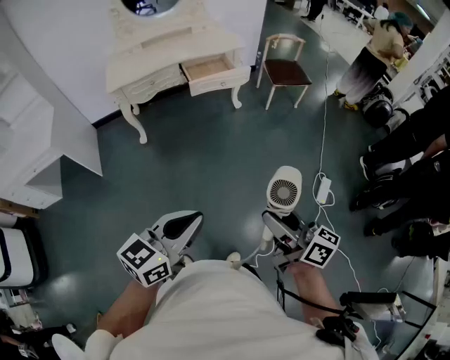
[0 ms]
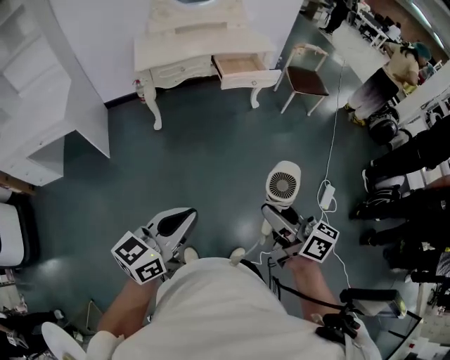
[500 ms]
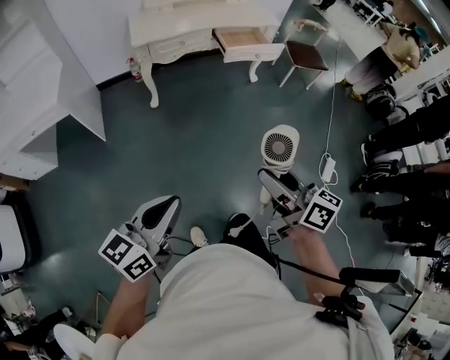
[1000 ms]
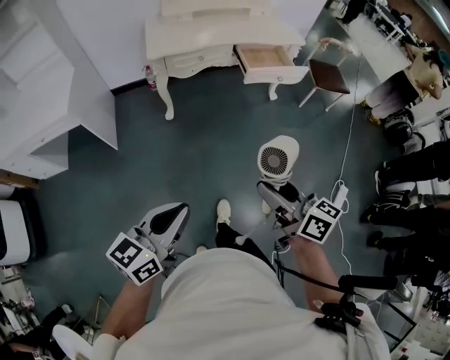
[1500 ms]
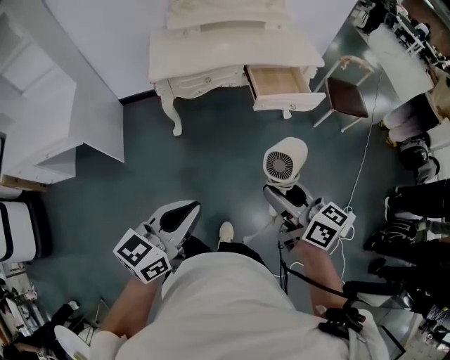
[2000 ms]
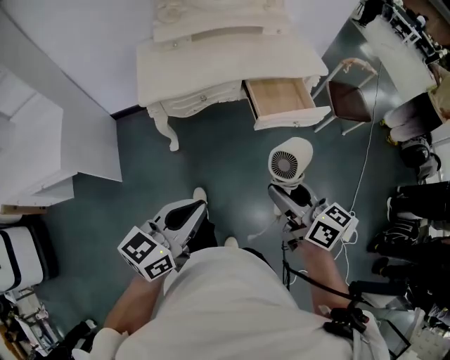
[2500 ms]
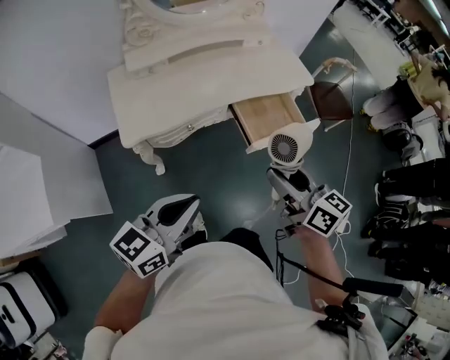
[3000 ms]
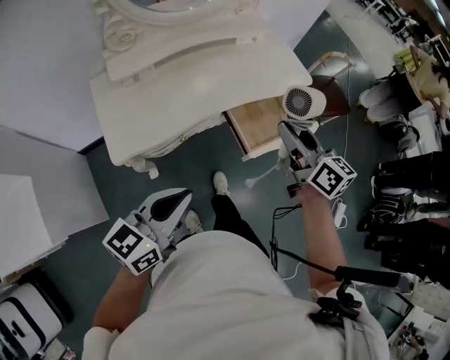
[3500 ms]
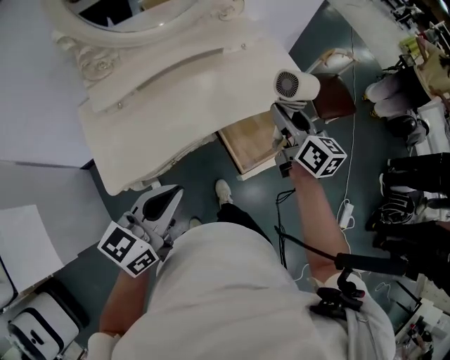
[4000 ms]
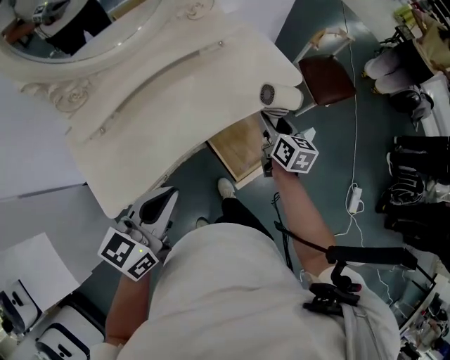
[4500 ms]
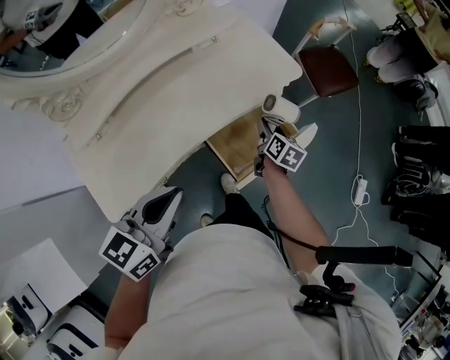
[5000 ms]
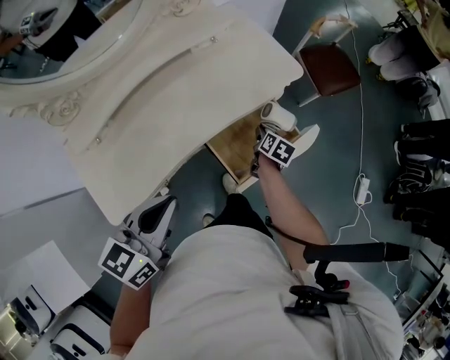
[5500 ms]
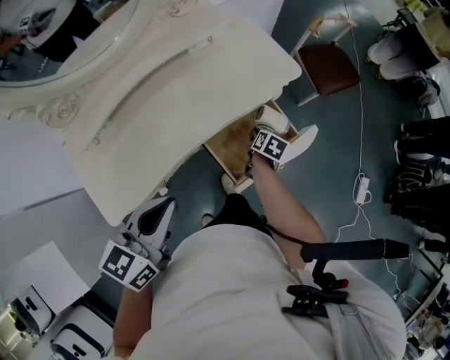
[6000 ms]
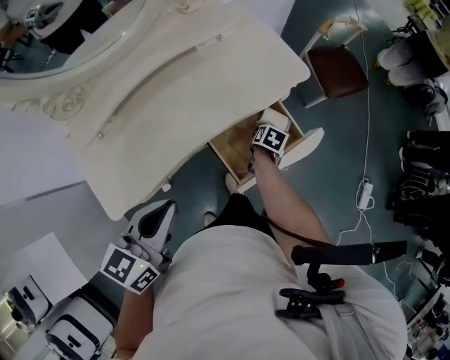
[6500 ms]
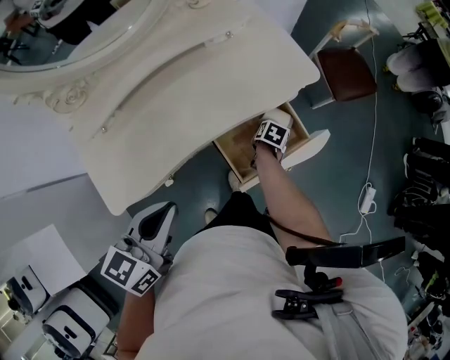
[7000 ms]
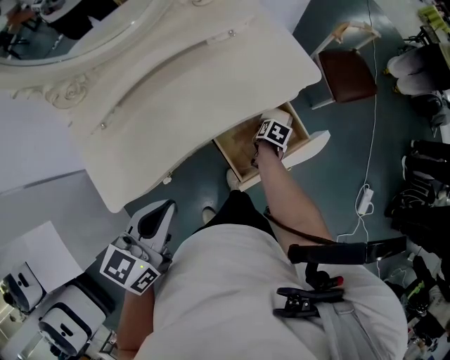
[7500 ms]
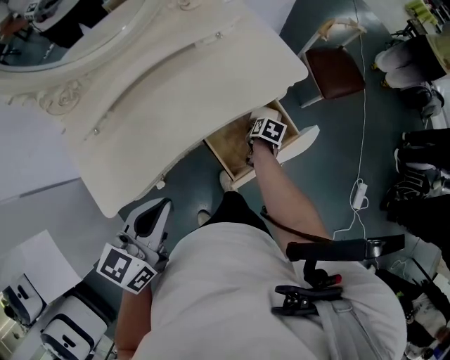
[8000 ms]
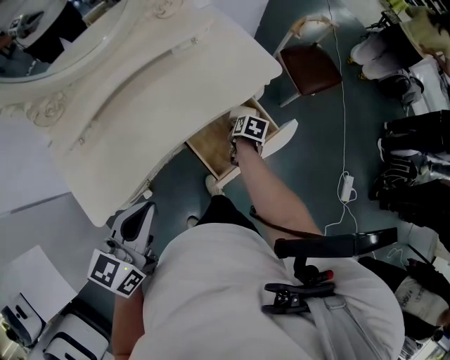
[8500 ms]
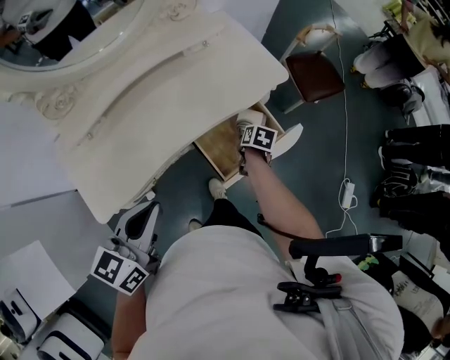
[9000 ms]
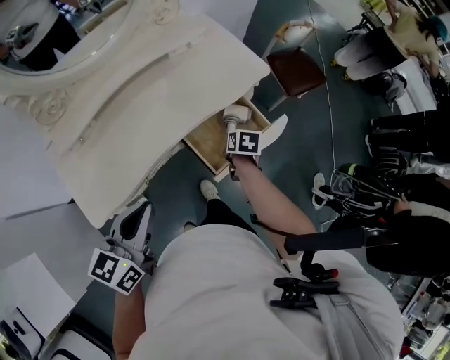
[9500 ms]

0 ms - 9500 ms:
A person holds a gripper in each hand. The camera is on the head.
0 ms - 2000 ms: The two grippers go approximately 40 cm forward and to the left.
2000 ms - 4000 ms: The two grippers travel together, forward, roughly 60 cm. The right gripper rotates some 30 degrees.
4000 ms - 5500 ms: The left gripper is displaced forward by about 10 cm; the right gripper is displaced downward by about 30 cm, and tilts its fingers approximately 40 degrees downward.
5500 ms - 7500 ms: The right gripper goes approximately 5 cm downward.
7500 ms - 9500 ms: The left gripper moves backward, some 5 cm, while the right gripper travels upward and backward by roughly 15 cm, and closes.

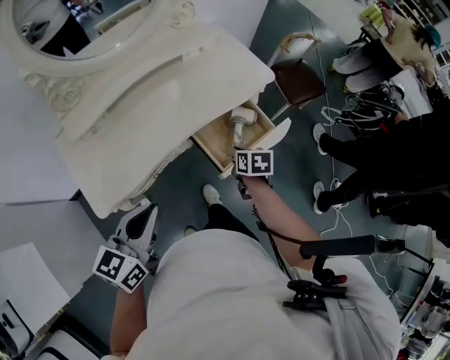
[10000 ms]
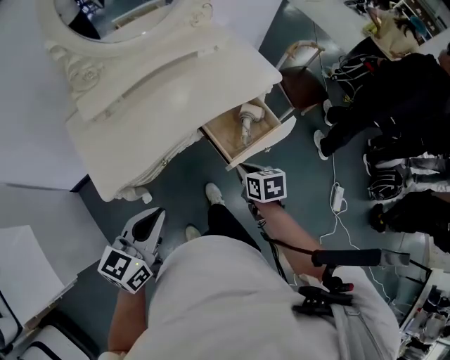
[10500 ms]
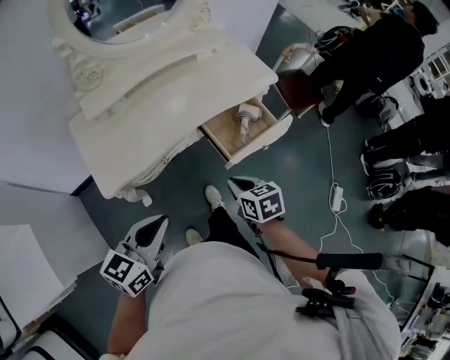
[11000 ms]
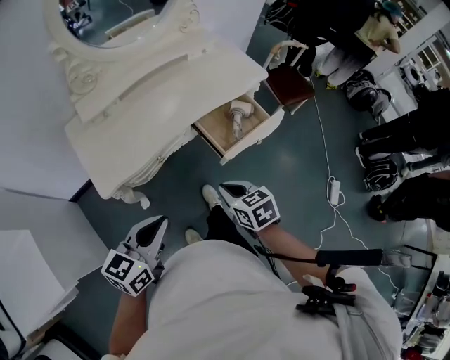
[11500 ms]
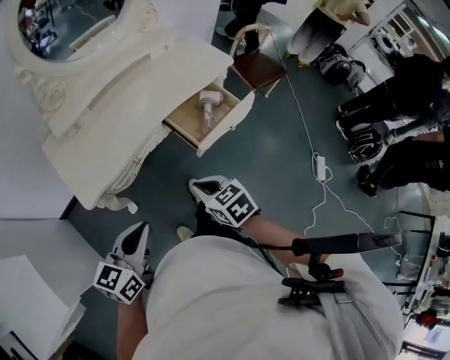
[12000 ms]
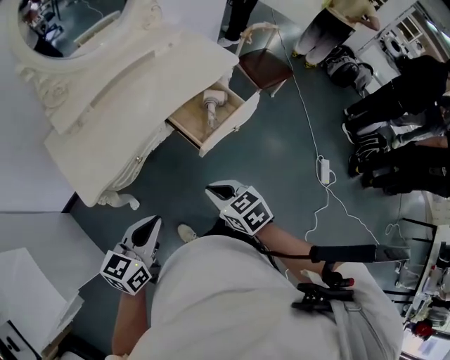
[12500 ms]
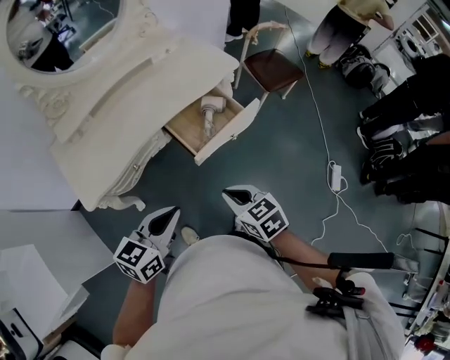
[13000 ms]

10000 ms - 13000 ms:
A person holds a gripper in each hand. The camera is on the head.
10000 ms - 11500 ms: The right gripper goes roughly 25 cm backward and to the left, and changes its angle by some 30 degrees; the left gripper shifts about 15 cm backward.
11500 ms - 13000 ms: Both grippers travel together to the right, some 15 cm.

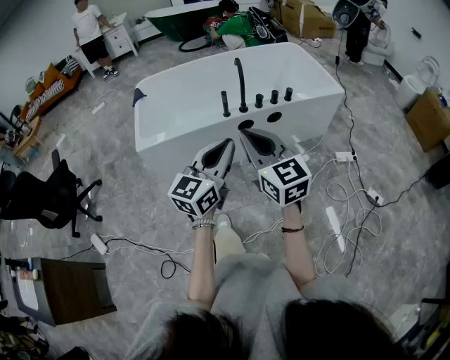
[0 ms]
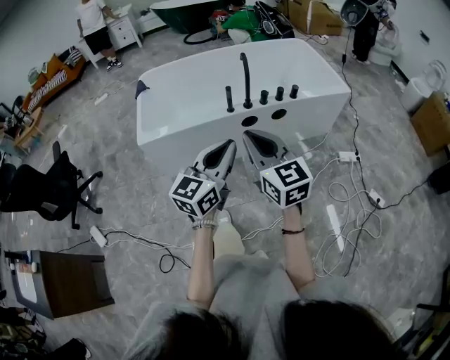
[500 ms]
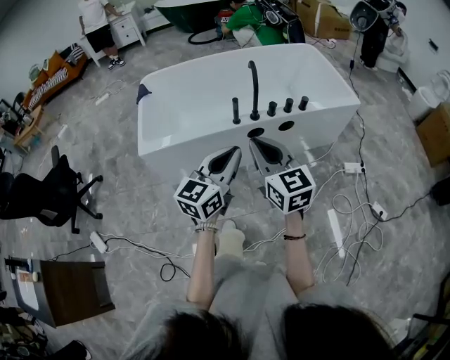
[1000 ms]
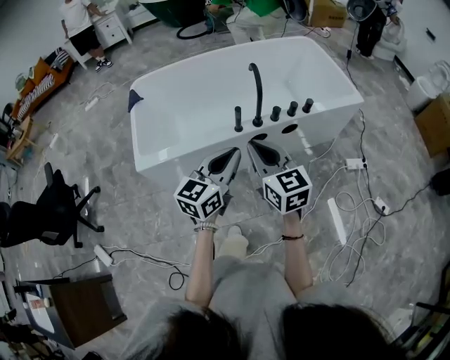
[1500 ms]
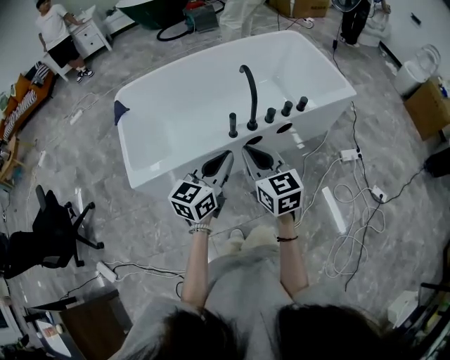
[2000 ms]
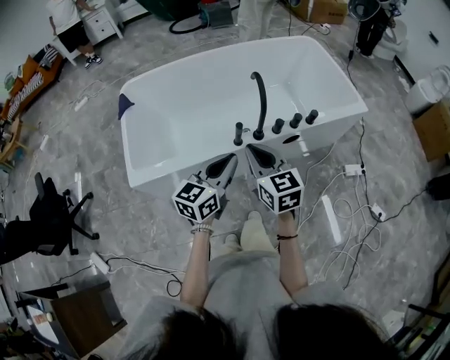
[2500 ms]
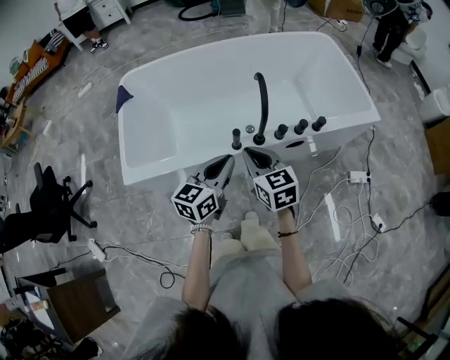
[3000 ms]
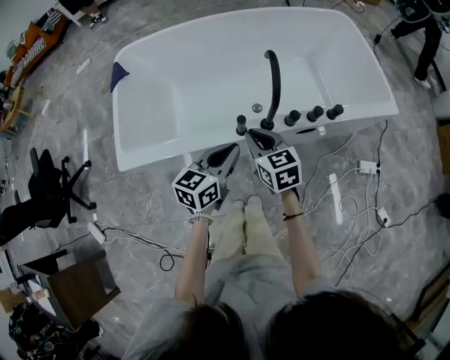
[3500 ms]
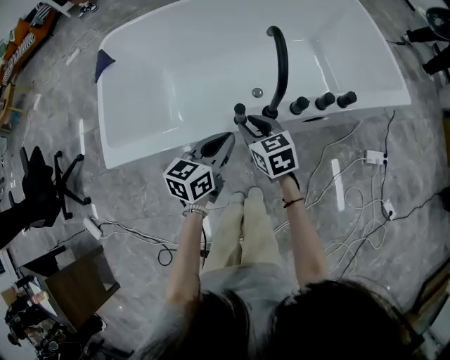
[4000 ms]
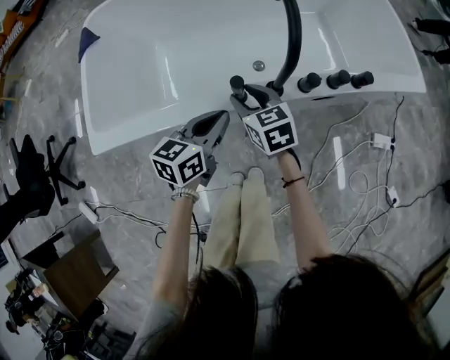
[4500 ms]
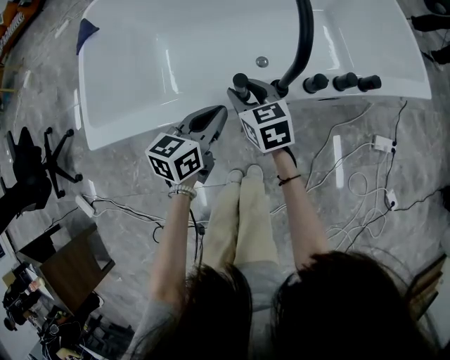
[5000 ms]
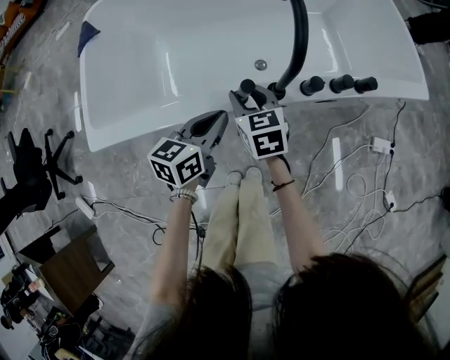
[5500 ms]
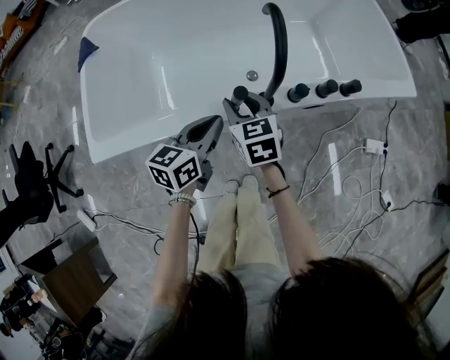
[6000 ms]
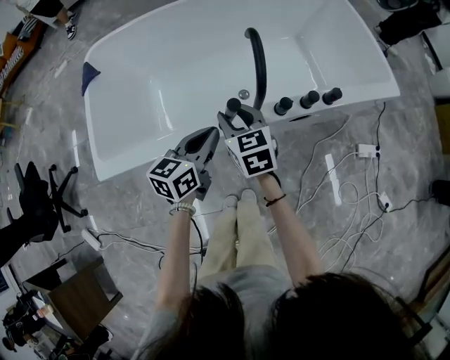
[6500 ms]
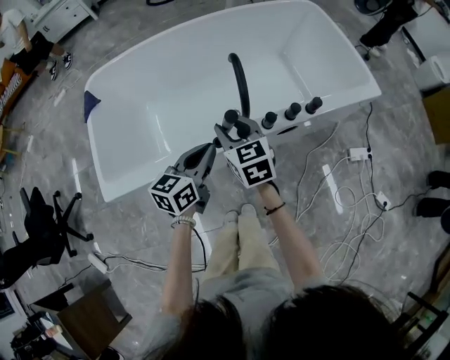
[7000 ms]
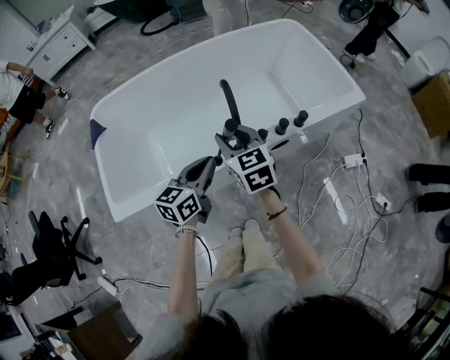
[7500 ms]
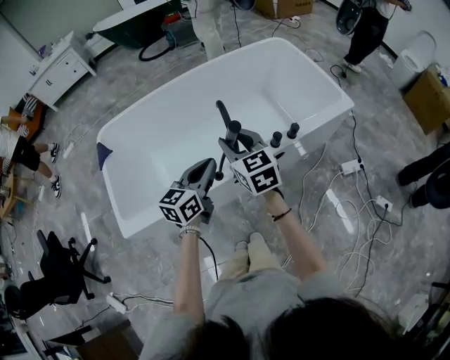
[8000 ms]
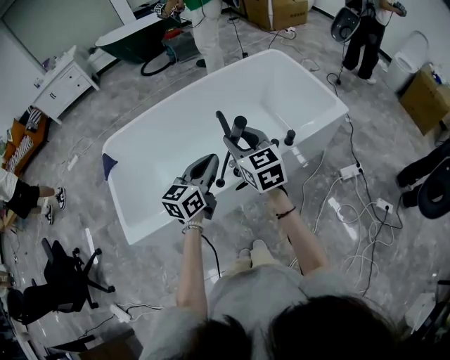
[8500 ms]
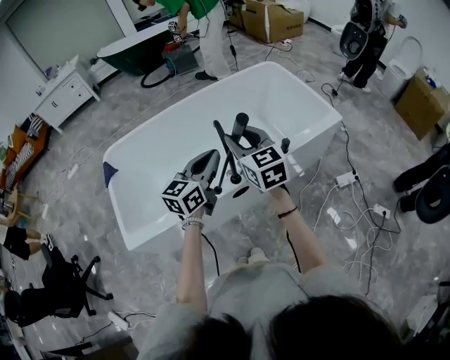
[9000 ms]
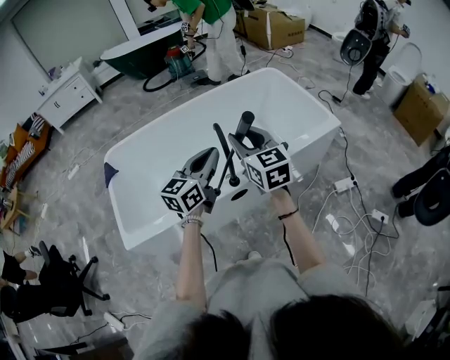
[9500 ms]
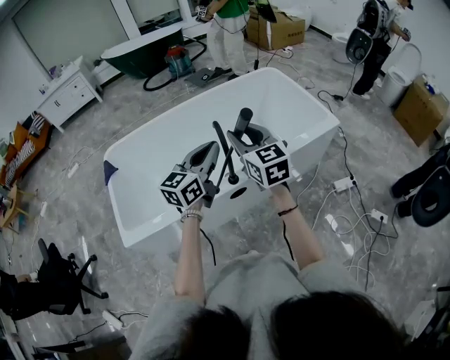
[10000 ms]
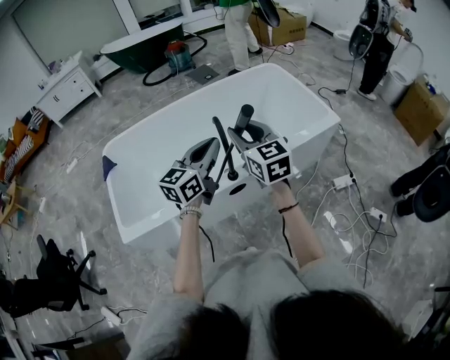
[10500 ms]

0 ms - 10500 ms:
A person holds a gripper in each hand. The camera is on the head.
0 ms - 2000 ms: The right gripper is displaced forward and downward by approximately 25 cm. The left gripper shifts about 25 cm forward.
2000 ms - 4000 ms: Both grippers move downward and forward, approximately 30 cm. The left gripper rotates approximately 20 degrees, while the right gripper rotates some 30 degrees.
4000 ms - 6500 ms: The left gripper reaches some 5 cm downward, then returns. The right gripper ends up approximately 5 cm from where it was.
6500 ms - 8500 ms: Both grippers travel together upward, roughly 20 cm.
8500 ms - 10500 ms: The grippers both shift upward by approximately 5 cm.

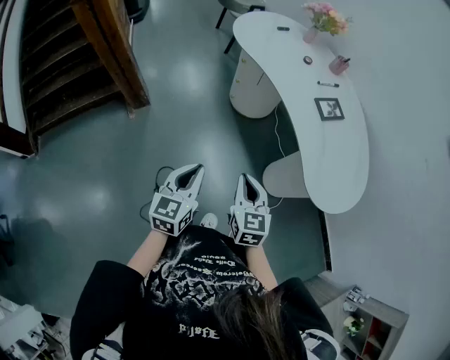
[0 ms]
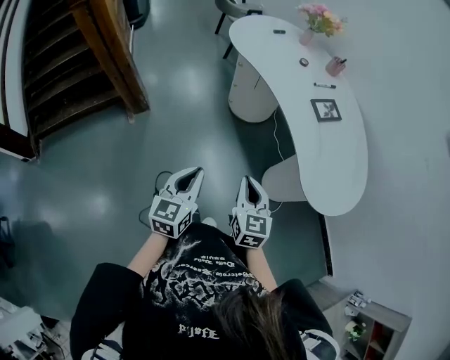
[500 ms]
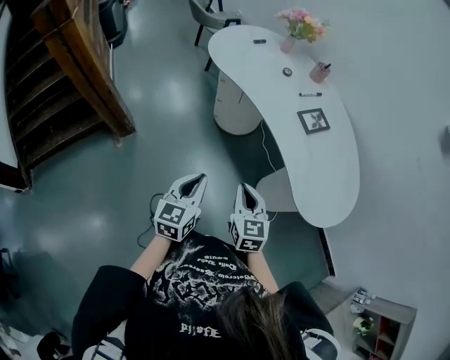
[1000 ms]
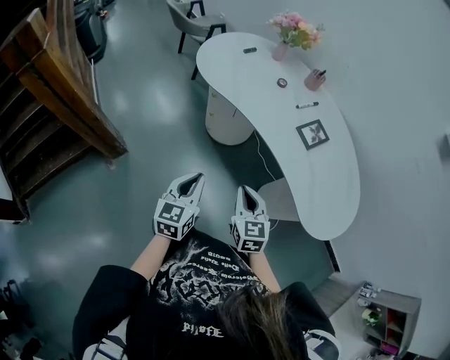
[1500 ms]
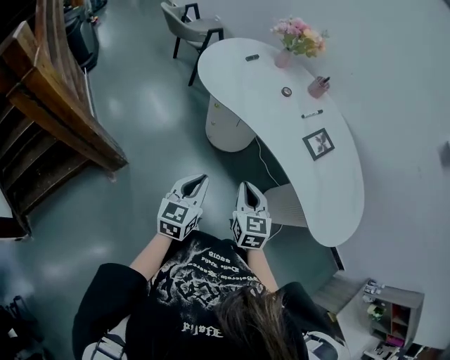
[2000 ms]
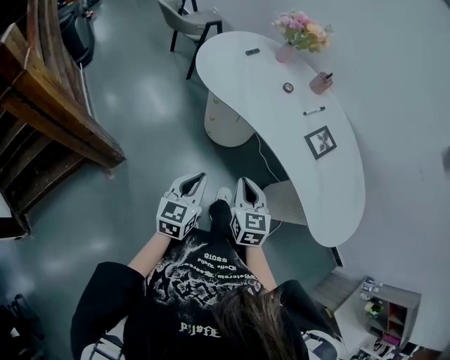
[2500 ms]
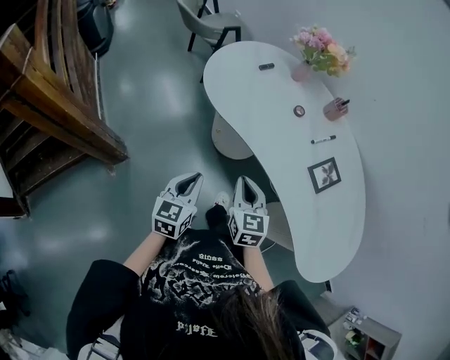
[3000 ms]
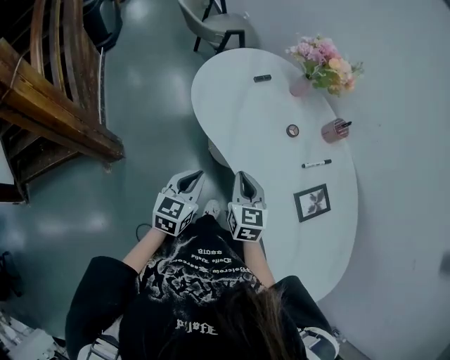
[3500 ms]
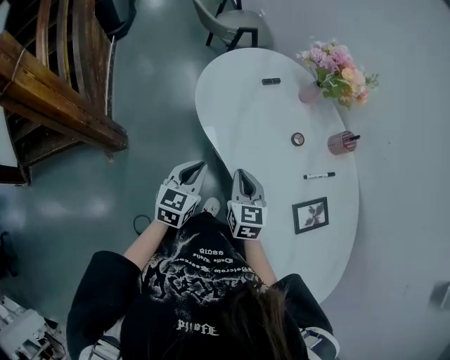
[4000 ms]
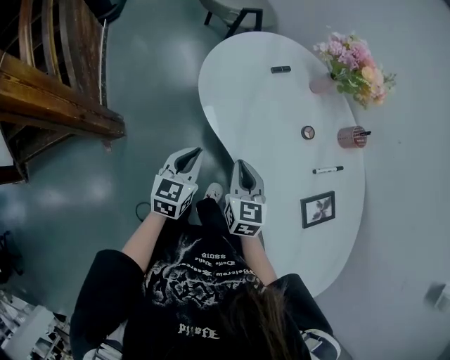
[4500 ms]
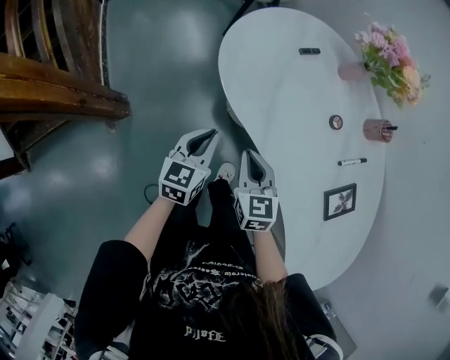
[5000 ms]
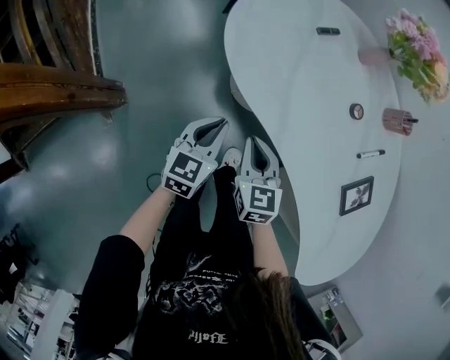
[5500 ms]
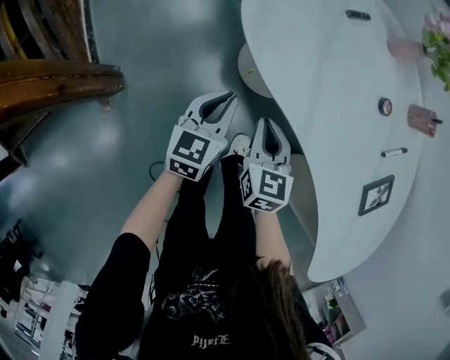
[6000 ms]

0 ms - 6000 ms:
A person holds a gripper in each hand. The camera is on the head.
0 ms - 2000 ms: The two grippers go about 25 cm forward.
2000 ms - 4000 ms: The grippers both shift forward by about 30 cm. The right gripper changes its angle by approximately 20 degrees.
4000 ms - 6000 ms: The right gripper travels downward and to the left by roughly 20 cm. Meanwhile the left gripper travels downward, to the left and forward by some 20 cm.
